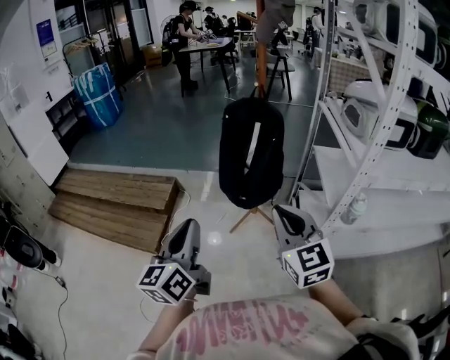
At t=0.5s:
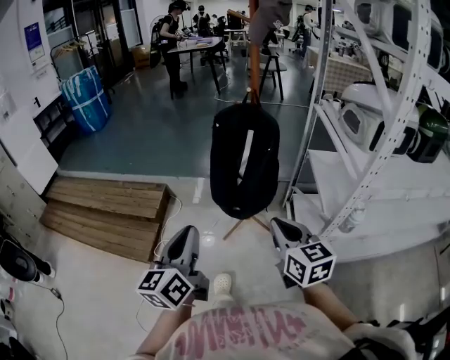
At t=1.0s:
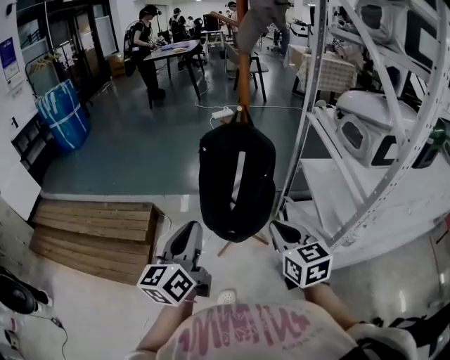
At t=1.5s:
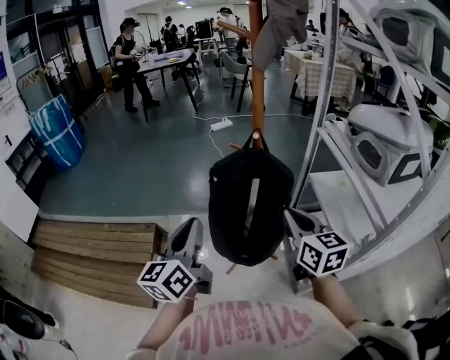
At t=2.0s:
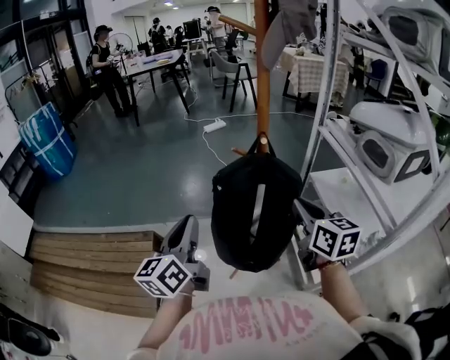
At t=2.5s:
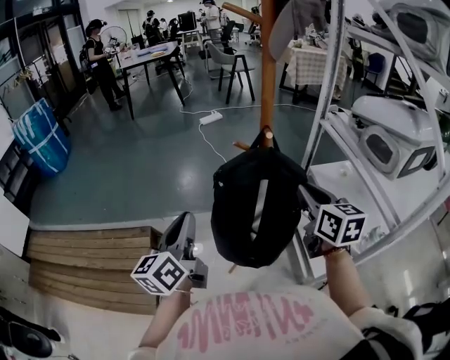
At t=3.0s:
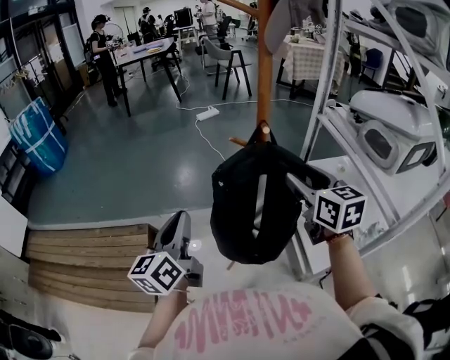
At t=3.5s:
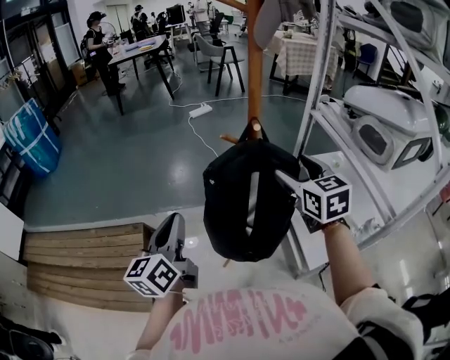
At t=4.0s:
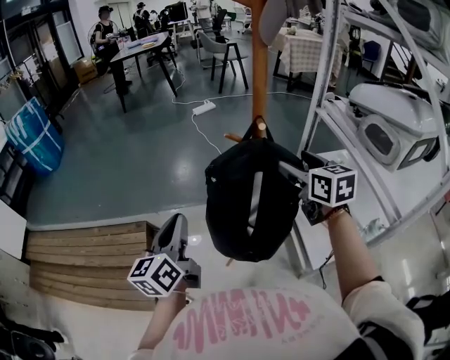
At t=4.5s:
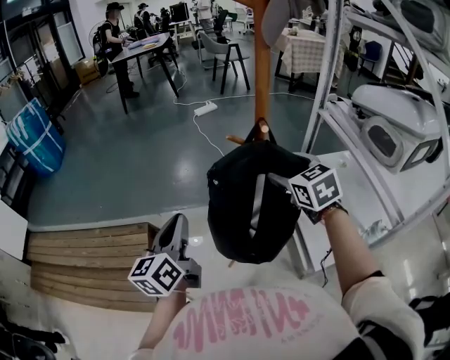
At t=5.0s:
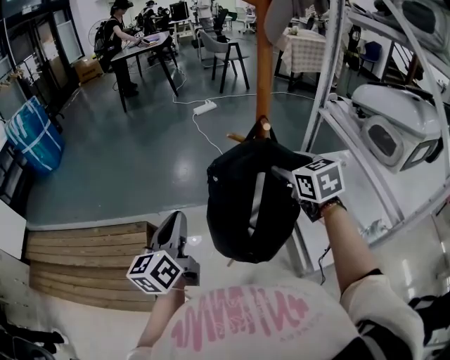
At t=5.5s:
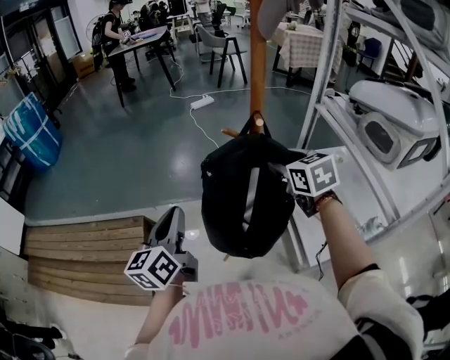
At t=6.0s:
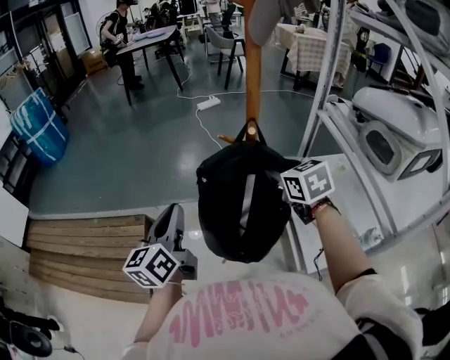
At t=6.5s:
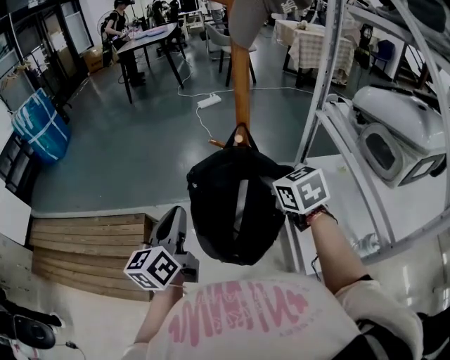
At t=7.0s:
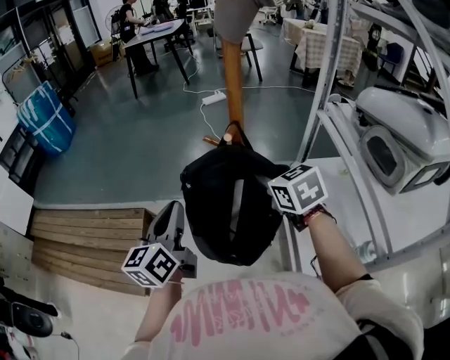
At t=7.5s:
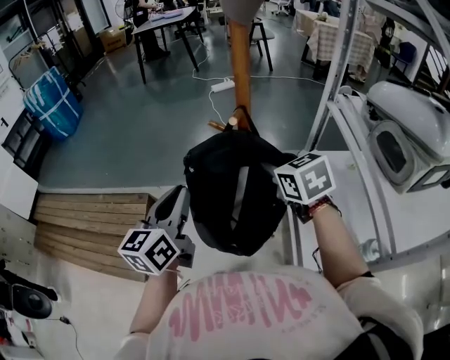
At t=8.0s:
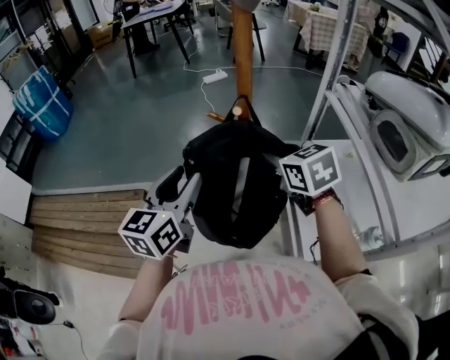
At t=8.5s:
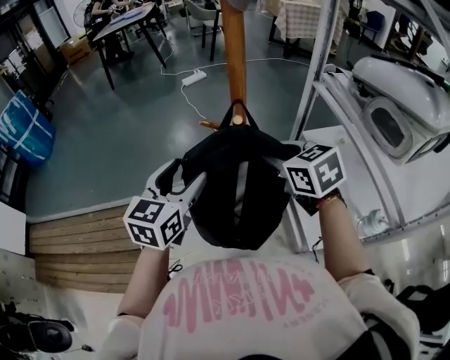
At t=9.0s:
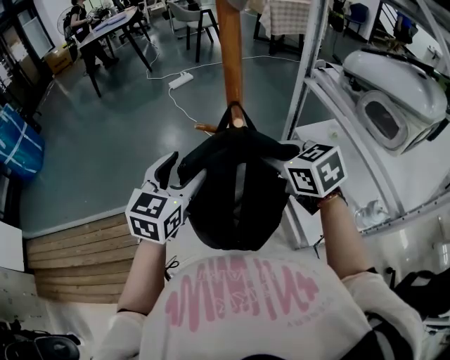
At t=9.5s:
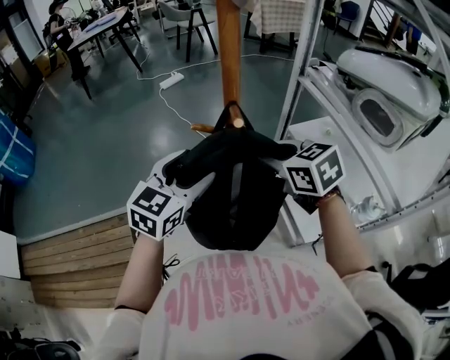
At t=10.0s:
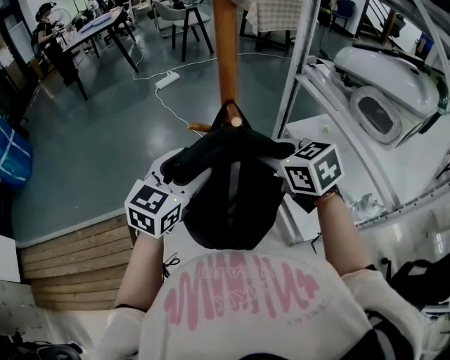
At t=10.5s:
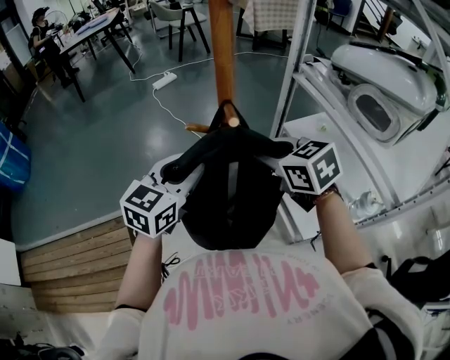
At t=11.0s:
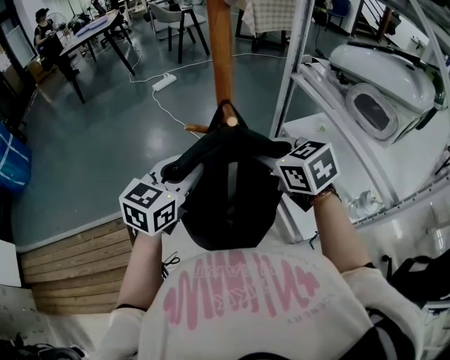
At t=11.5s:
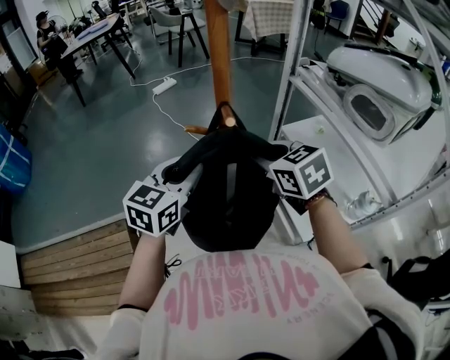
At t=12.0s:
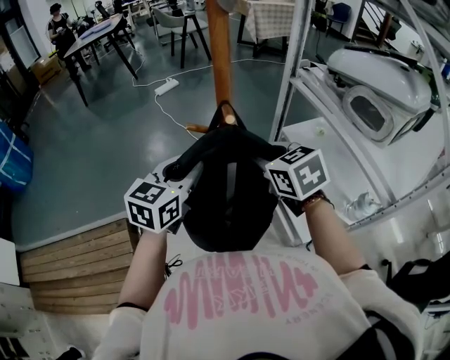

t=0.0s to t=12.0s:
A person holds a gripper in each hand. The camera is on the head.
t=0.0s to t=2.0s: The two grippers go some 35 cm forward. The right gripper changes its angle by about 30 degrees.
t=2.0s to t=4.0s: The left gripper moves some 5 cm, while the right gripper moves forward, roughly 10 cm, and opens up.
t=4.0s to t=6.0s: The right gripper rotates about 20 degrees, and closes up.
t=6.0s to t=8.0s: The left gripper moves to the right, approximately 10 cm, and opens.
t=8.0s to t=10.0s: The left gripper shifts roughly 10 cm forward, swivels some 40 degrees, and opens its fingers.
t=10.0s to t=12.0s: The left gripper closes.

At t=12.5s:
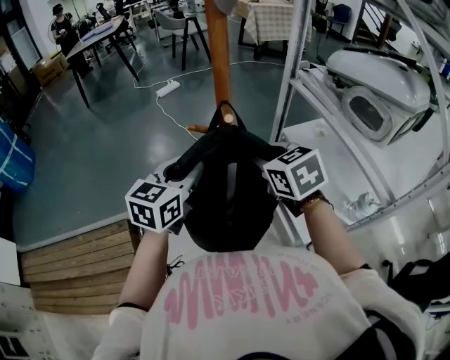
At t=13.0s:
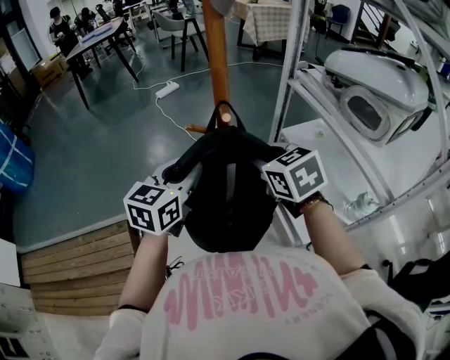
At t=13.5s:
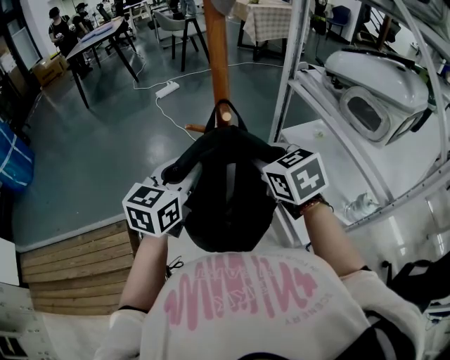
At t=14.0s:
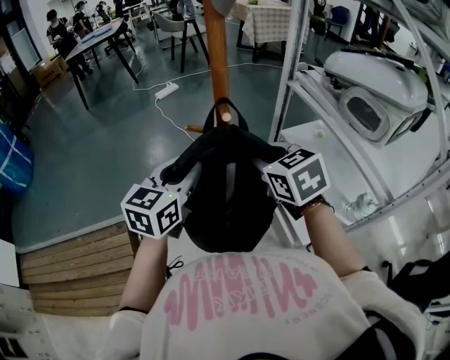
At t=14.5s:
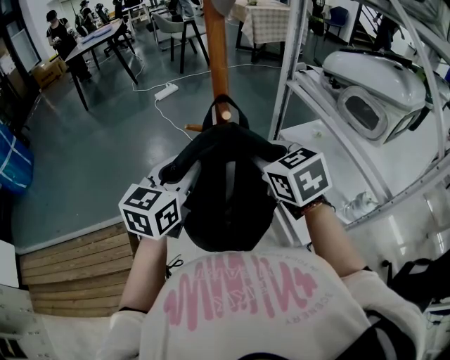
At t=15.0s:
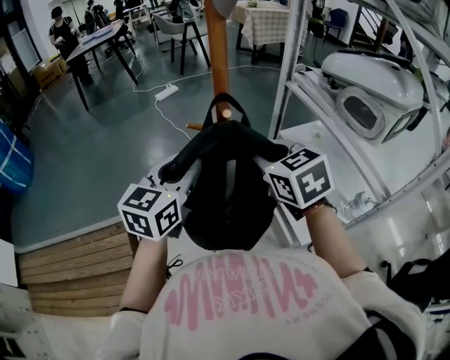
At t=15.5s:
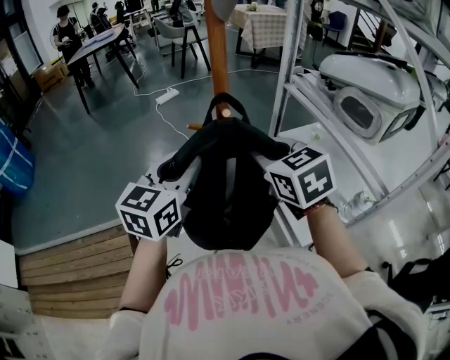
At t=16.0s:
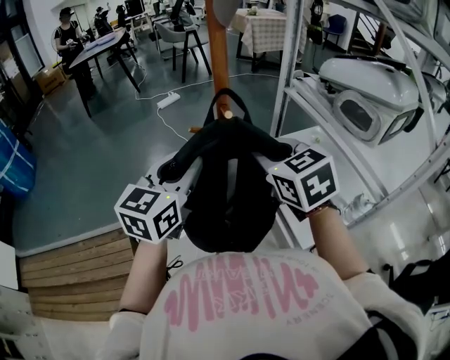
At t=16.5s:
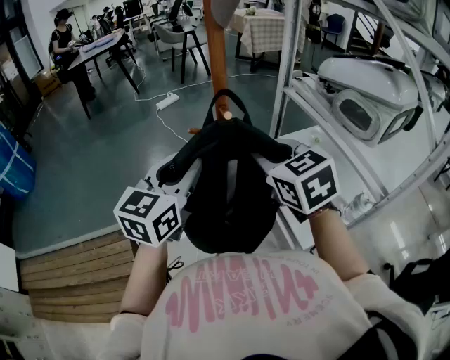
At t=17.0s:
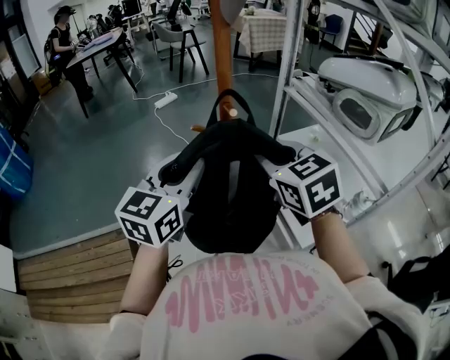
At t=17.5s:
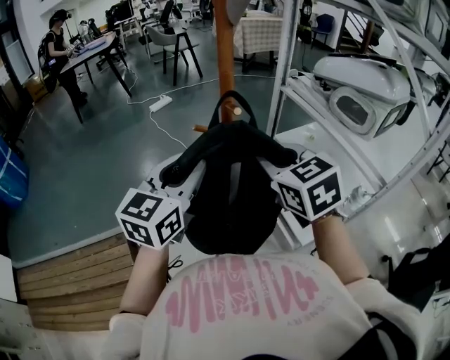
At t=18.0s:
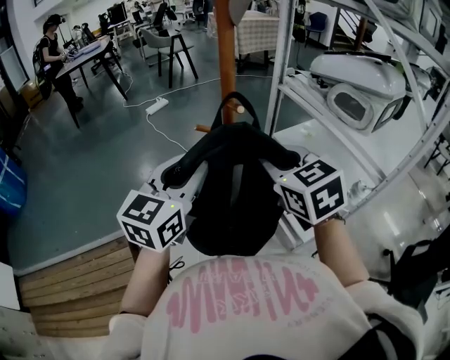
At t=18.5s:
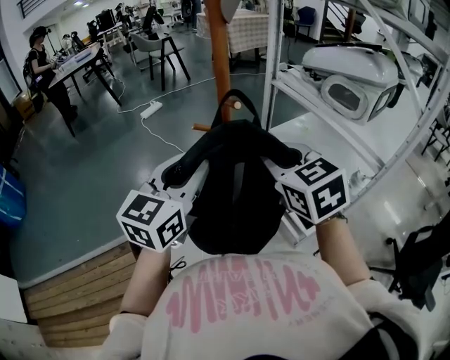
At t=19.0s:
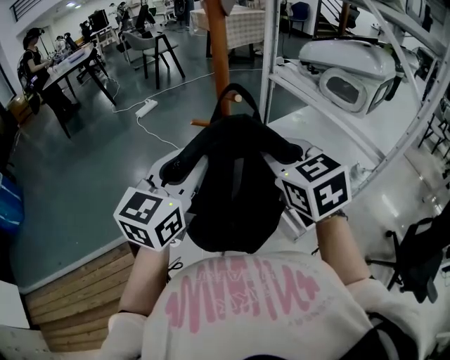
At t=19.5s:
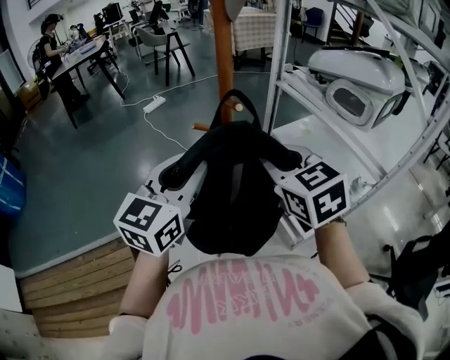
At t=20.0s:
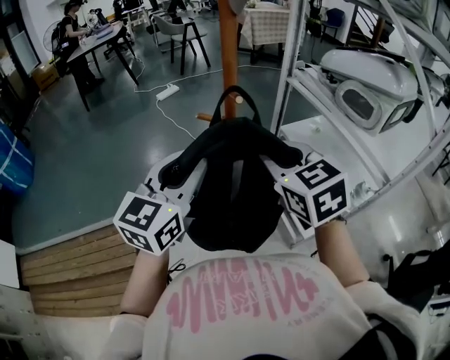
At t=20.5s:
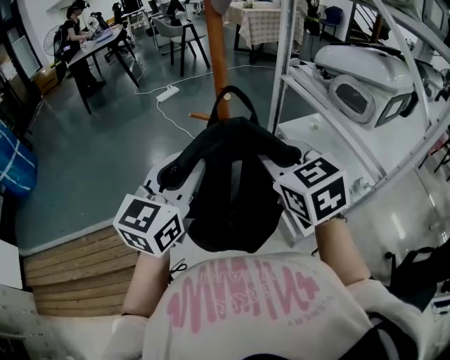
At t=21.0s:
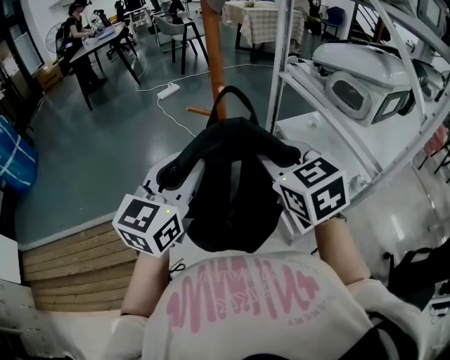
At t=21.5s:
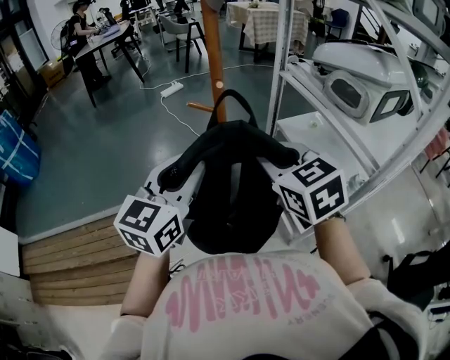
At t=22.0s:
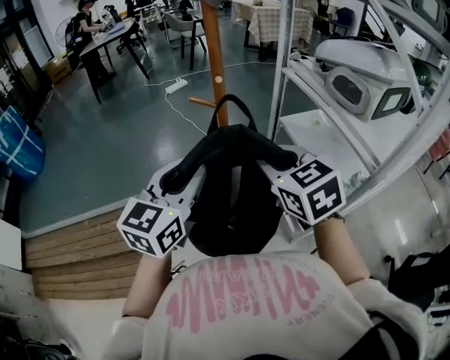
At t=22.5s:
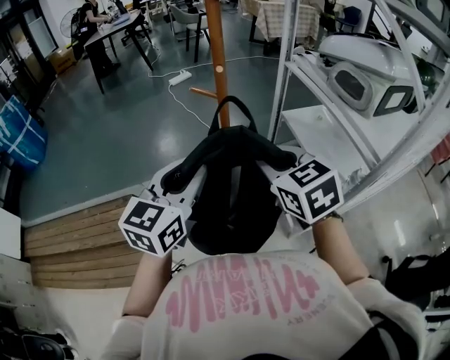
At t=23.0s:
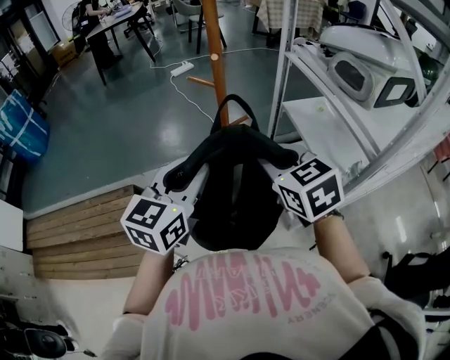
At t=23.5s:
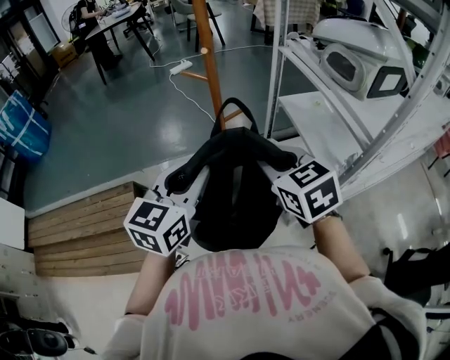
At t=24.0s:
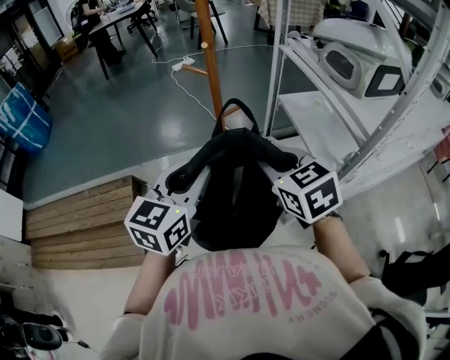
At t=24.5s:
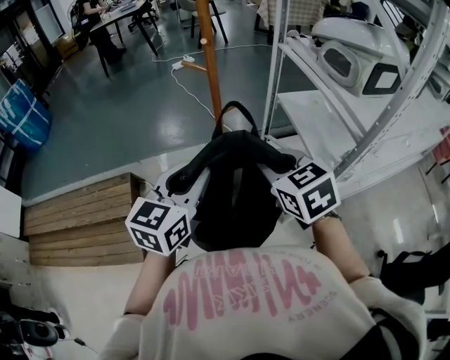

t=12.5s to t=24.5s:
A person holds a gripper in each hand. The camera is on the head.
t=12.5s to t=14.5s: The grippers stay close to where they were, moving slightly.
t=14.5s to t=16.5s: Both grippers travel together upward, some 5 cm.
t=16.5s to t=20.5s: The grippers stay close to where they were, moving slightly.
t=20.5s to t=22.5s: The two grippers go roughly 5 cm backward.
t=22.5s to t=24.5s: The grippers both shift backward by roughly 10 cm.

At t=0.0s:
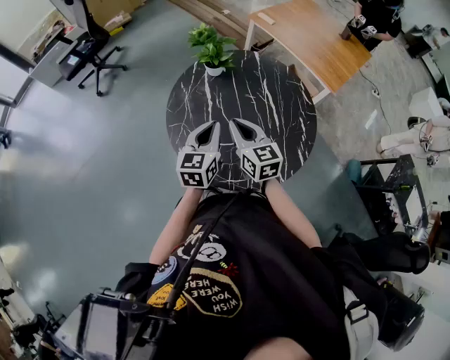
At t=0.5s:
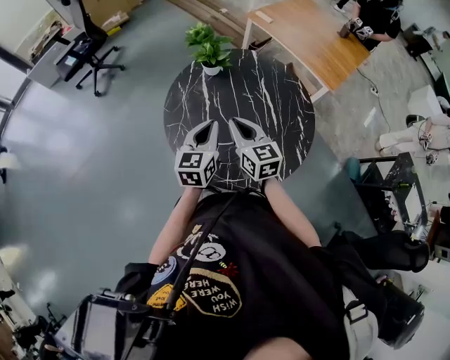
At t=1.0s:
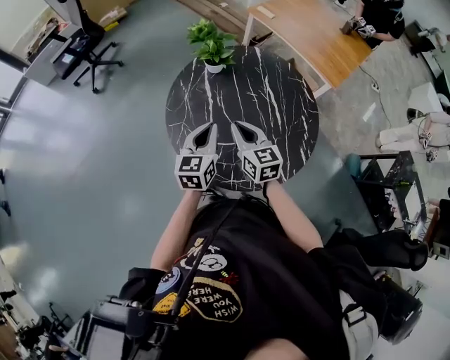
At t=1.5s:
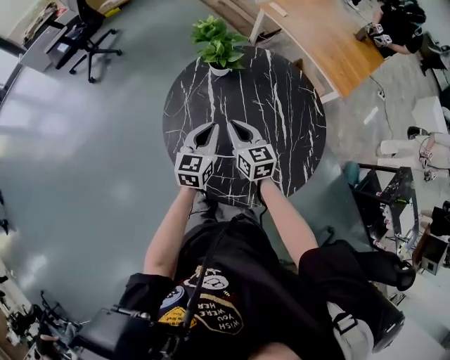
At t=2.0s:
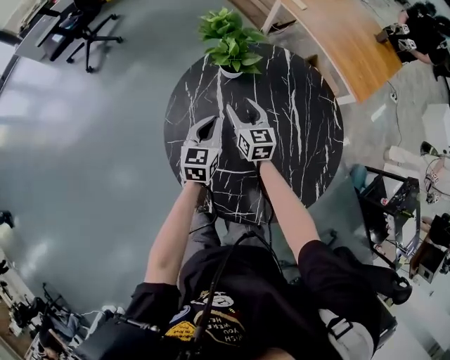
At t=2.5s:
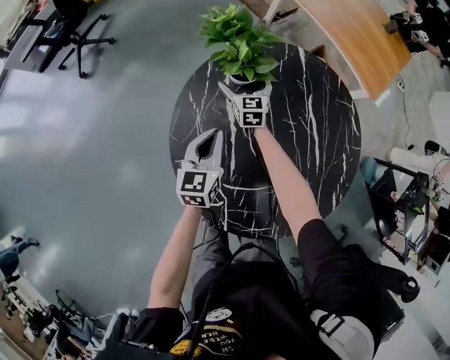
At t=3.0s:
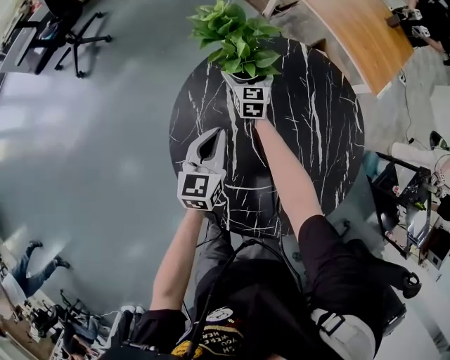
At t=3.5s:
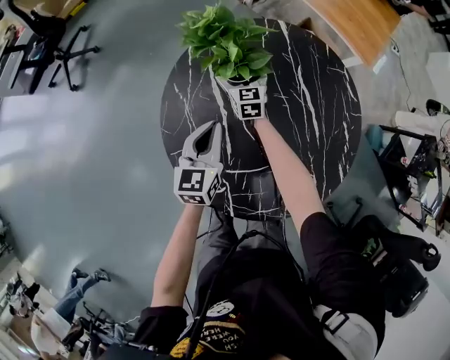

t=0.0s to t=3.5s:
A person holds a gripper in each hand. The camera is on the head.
t=0.0s to t=2.0s: The grippers both shift forward and downward by about 30 cm. The right gripper opens.
t=2.0s to t=3.5s: The right gripper heads forward and downward, covering some 15 cm, and opens its fingers.
